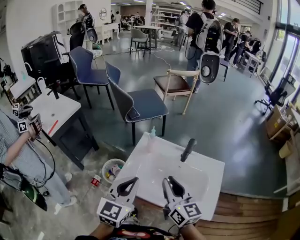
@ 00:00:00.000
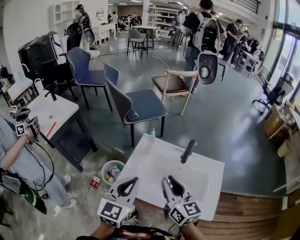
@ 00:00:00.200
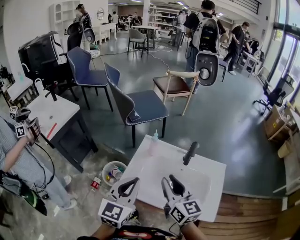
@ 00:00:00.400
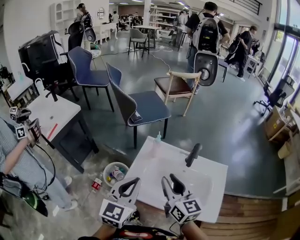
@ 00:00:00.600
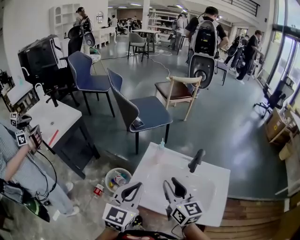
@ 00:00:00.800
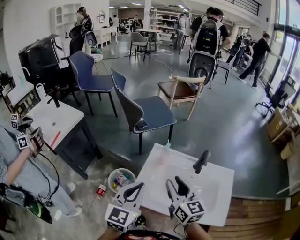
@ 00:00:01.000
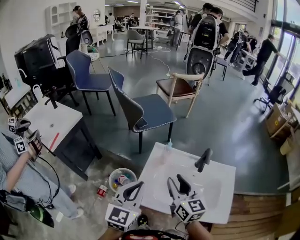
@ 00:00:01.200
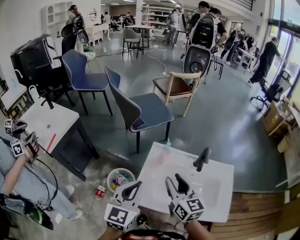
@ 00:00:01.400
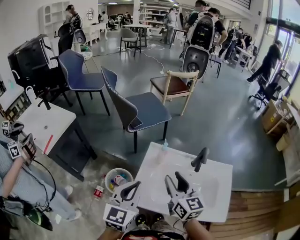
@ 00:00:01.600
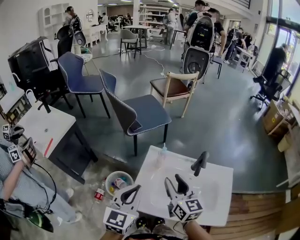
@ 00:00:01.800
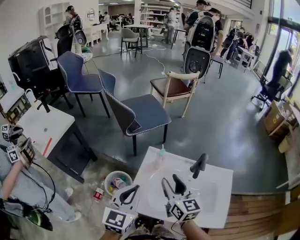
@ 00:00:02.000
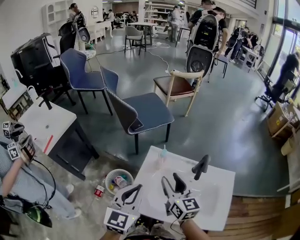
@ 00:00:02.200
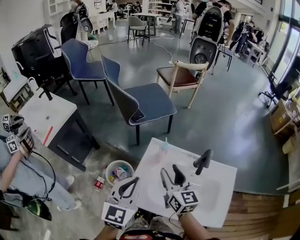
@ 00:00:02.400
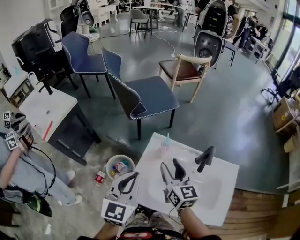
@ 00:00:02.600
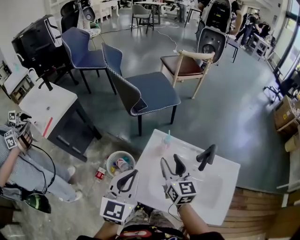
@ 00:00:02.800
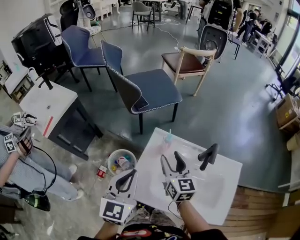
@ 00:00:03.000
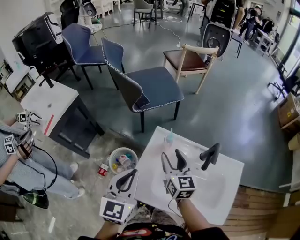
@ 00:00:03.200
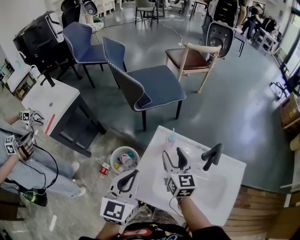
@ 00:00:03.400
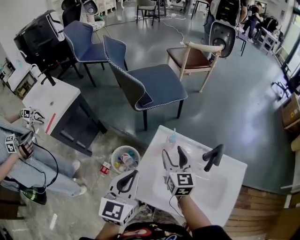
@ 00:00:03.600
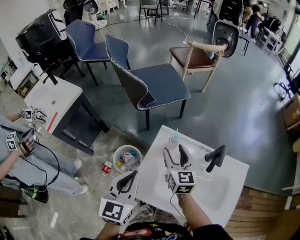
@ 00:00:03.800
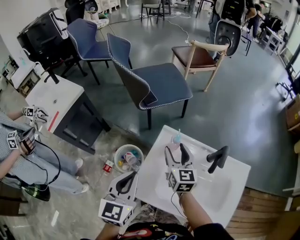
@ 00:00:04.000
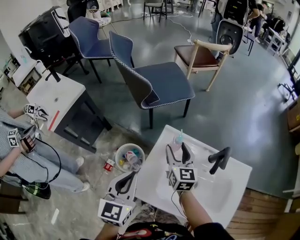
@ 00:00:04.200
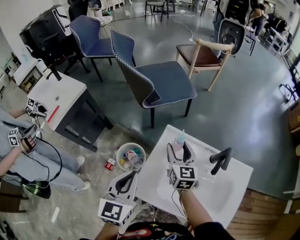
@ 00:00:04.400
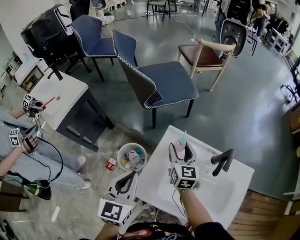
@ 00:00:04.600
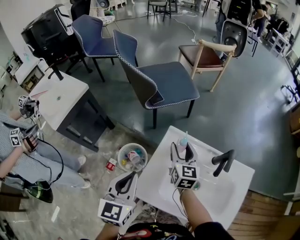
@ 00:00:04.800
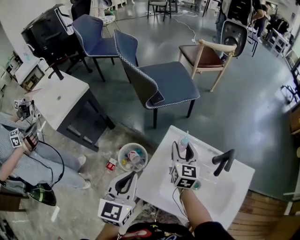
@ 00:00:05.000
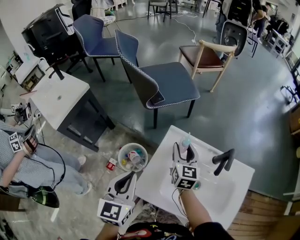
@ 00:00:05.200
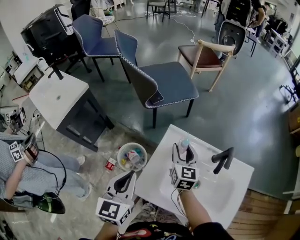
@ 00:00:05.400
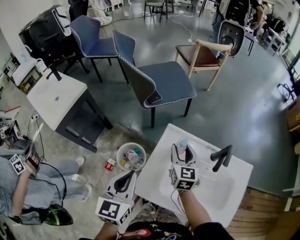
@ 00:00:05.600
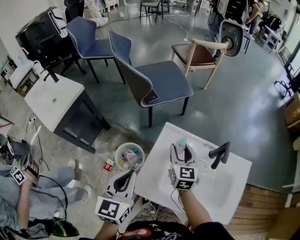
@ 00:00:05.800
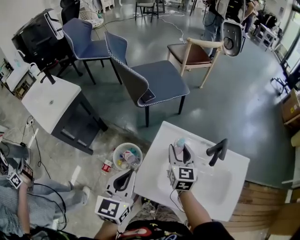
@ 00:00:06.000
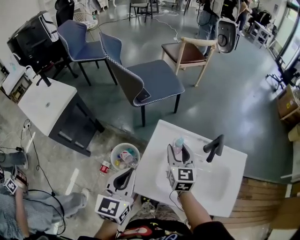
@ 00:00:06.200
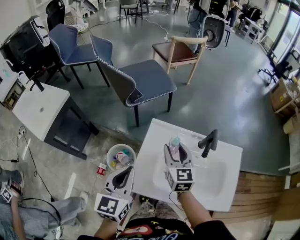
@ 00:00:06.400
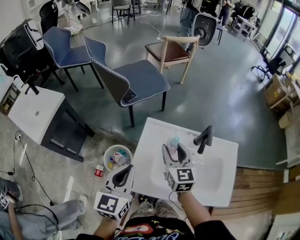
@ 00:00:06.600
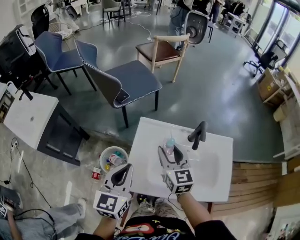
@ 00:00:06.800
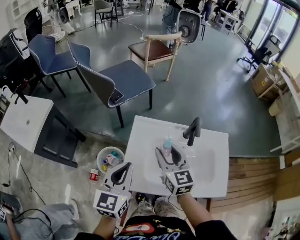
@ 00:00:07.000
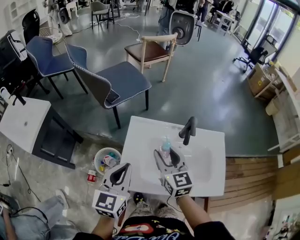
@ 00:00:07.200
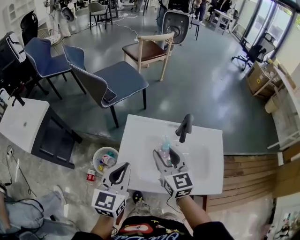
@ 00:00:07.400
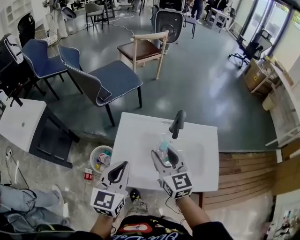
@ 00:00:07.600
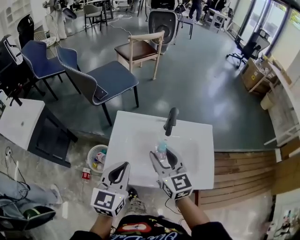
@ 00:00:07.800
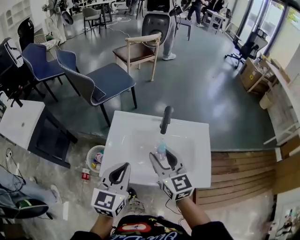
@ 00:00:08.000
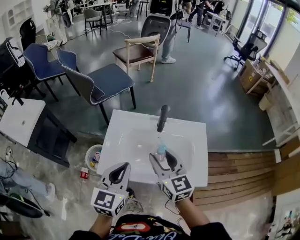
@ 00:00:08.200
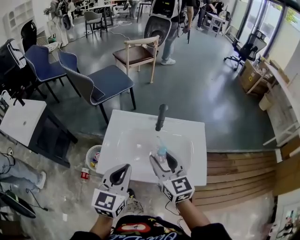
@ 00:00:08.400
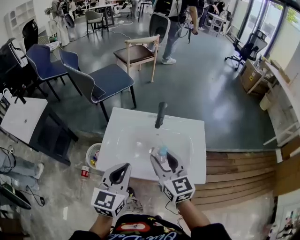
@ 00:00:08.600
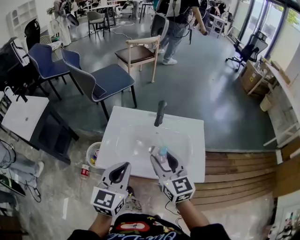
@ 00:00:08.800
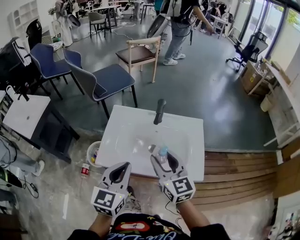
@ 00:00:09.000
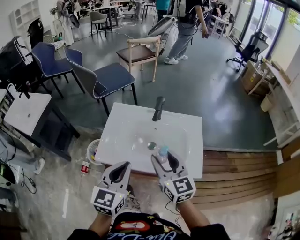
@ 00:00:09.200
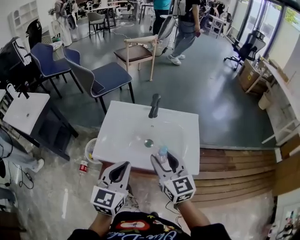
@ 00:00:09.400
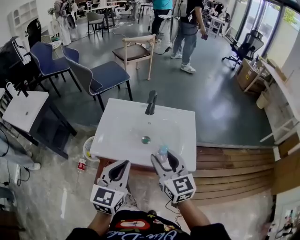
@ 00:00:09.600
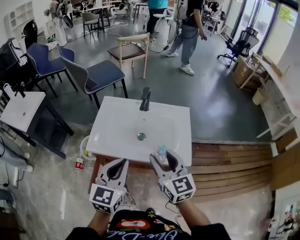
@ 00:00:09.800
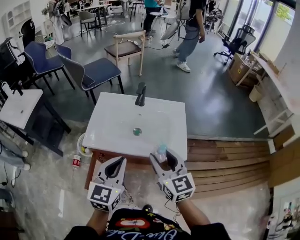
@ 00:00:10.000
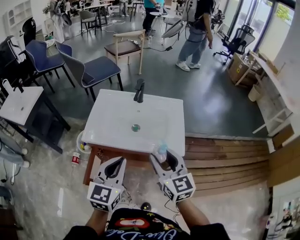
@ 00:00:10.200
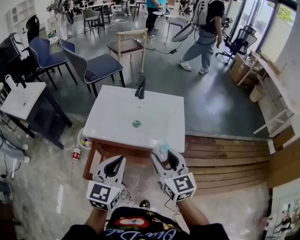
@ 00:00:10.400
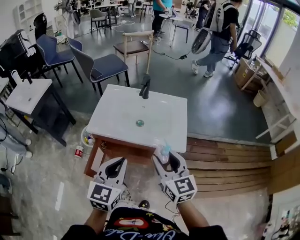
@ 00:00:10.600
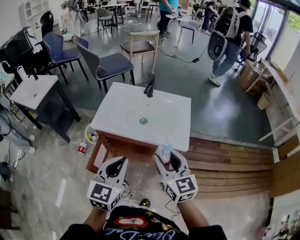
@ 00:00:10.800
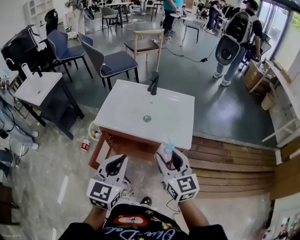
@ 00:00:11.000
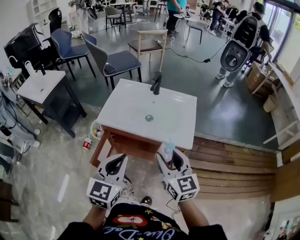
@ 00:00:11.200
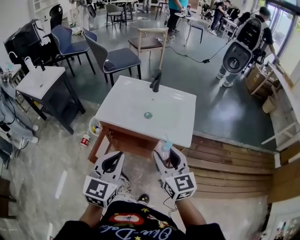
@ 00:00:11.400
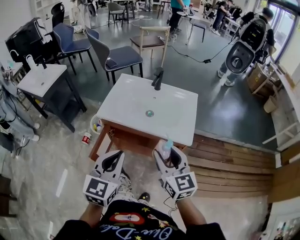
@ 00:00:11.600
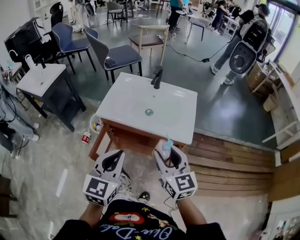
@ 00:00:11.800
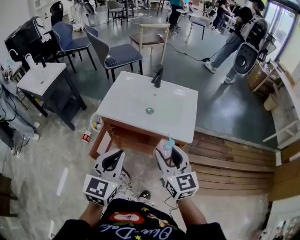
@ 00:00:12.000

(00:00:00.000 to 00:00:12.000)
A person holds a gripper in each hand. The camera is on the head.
00:00:00.000 - 00:00:01.600: The left gripper goes approximately 10 cm to the left and forward; the right gripper shifts approximately 10 cm forward and to the left, and opens up.
00:00:01.600 - 00:00:03.000: The right gripper goes about 10 cm forward and downward.
00:00:03.000 - 00:00:04.400: The right gripper shifts approximately 5 cm forward.
00:00:04.400 - 00:00:06.000: There are only small adjustments of the grippers.
00:00:06.000 - 00:00:07.600: The right gripper moves backward, upward and to the right, approximately 15 cm; the left gripper goes roughly 10 cm to the right.
00:00:07.600 - 00:00:09.000: Both grippers travel together backward and to the right, some 15 cm.
00:00:09.000 - 00:00:10.400: Both grippers move backward and to the right, roughly 15 cm.
00:00:10.400 - 00:00:12.000: The two grippers go about 5 cm backward.

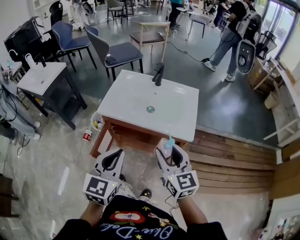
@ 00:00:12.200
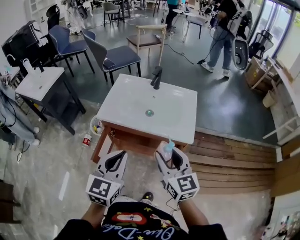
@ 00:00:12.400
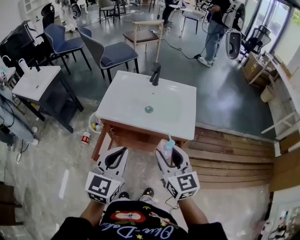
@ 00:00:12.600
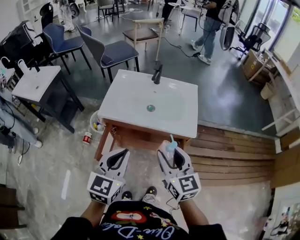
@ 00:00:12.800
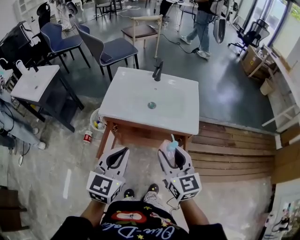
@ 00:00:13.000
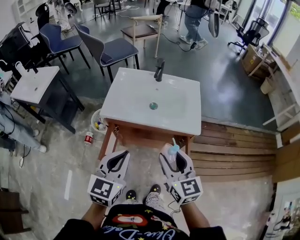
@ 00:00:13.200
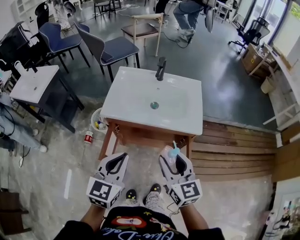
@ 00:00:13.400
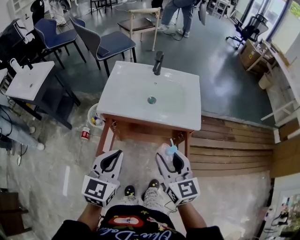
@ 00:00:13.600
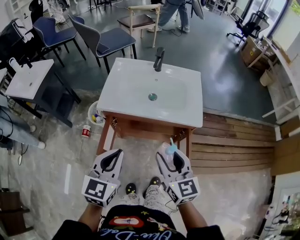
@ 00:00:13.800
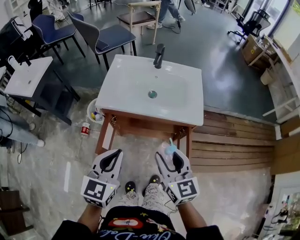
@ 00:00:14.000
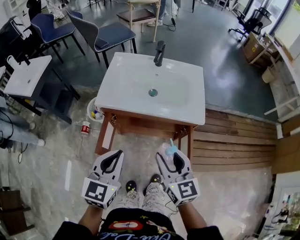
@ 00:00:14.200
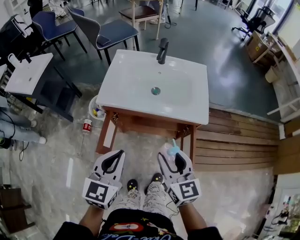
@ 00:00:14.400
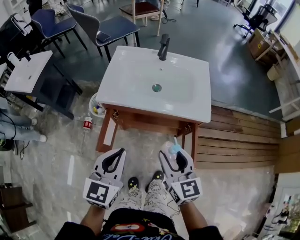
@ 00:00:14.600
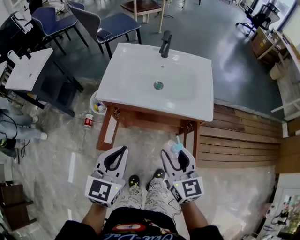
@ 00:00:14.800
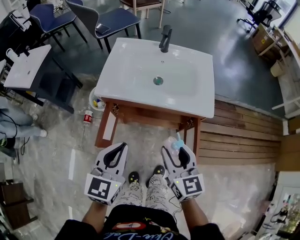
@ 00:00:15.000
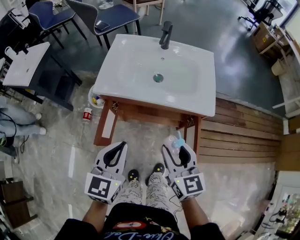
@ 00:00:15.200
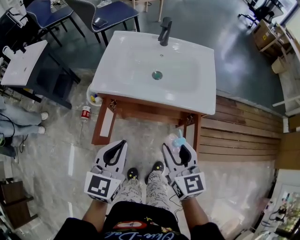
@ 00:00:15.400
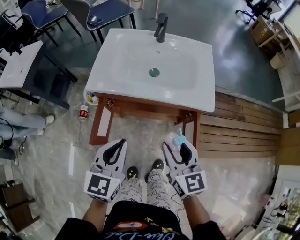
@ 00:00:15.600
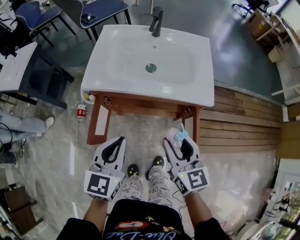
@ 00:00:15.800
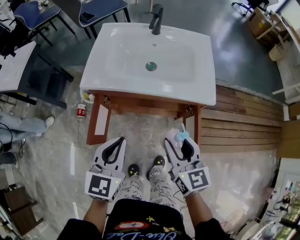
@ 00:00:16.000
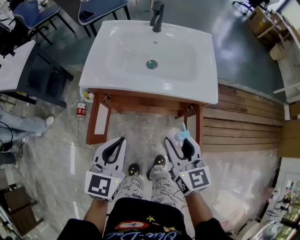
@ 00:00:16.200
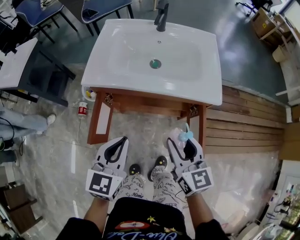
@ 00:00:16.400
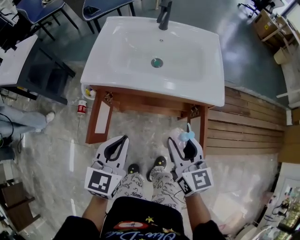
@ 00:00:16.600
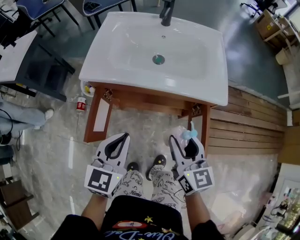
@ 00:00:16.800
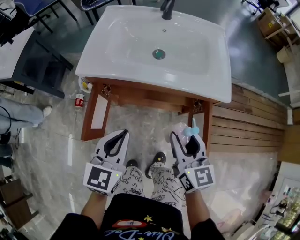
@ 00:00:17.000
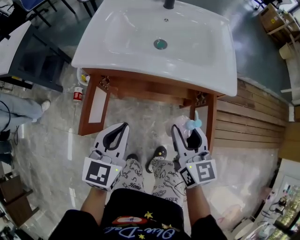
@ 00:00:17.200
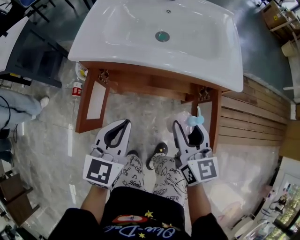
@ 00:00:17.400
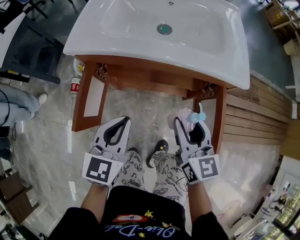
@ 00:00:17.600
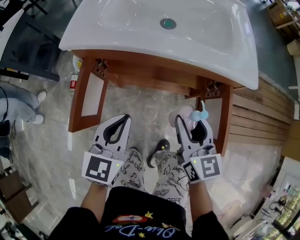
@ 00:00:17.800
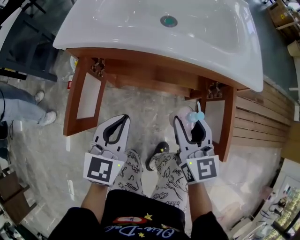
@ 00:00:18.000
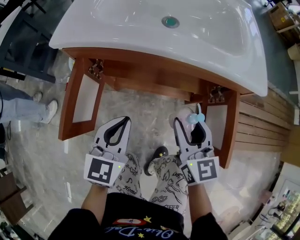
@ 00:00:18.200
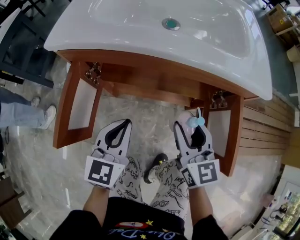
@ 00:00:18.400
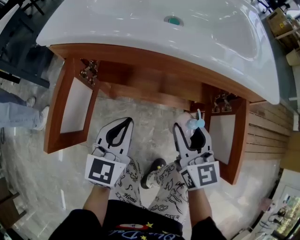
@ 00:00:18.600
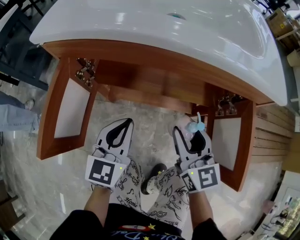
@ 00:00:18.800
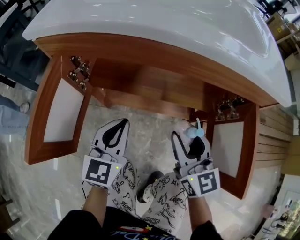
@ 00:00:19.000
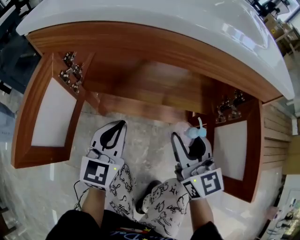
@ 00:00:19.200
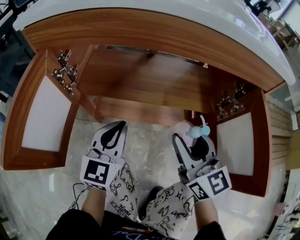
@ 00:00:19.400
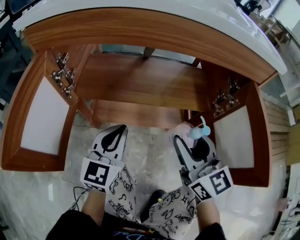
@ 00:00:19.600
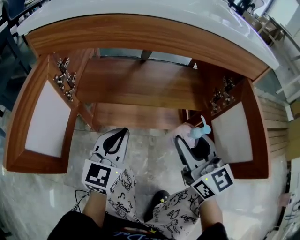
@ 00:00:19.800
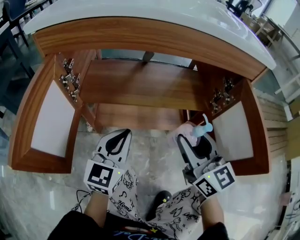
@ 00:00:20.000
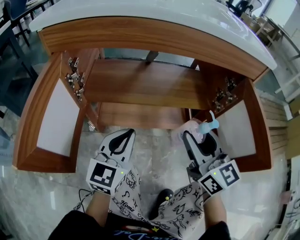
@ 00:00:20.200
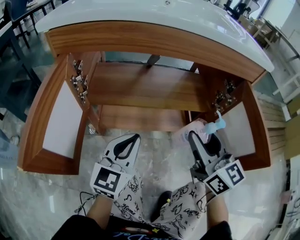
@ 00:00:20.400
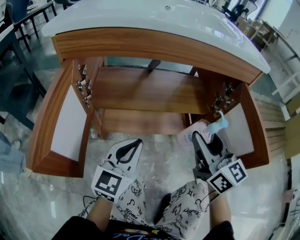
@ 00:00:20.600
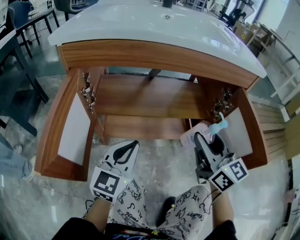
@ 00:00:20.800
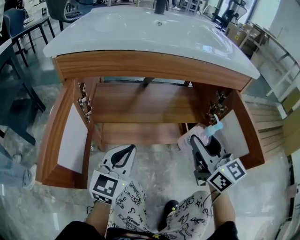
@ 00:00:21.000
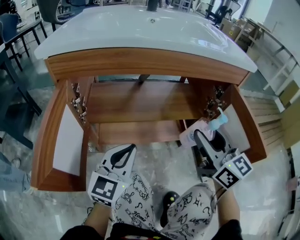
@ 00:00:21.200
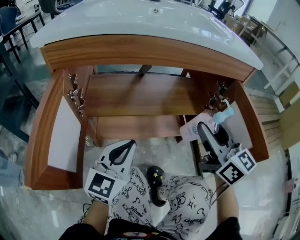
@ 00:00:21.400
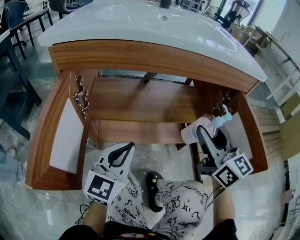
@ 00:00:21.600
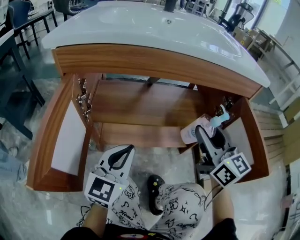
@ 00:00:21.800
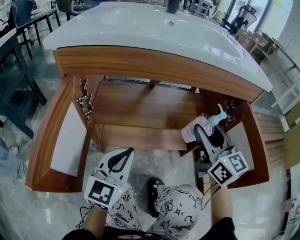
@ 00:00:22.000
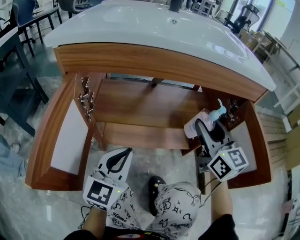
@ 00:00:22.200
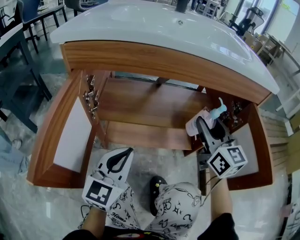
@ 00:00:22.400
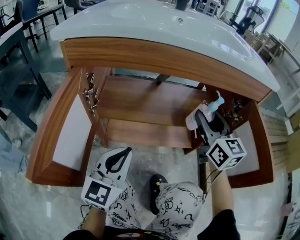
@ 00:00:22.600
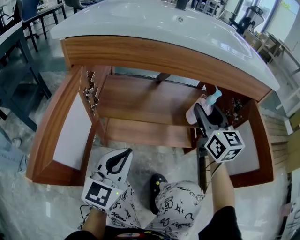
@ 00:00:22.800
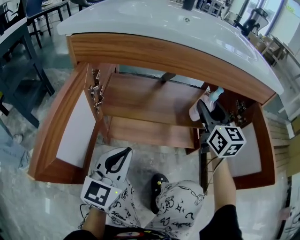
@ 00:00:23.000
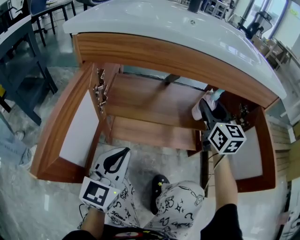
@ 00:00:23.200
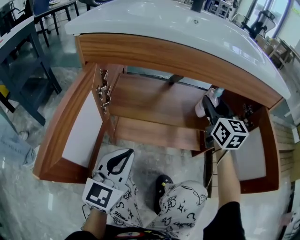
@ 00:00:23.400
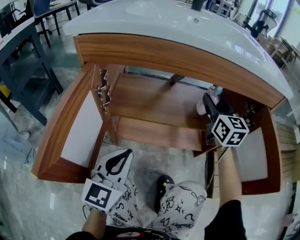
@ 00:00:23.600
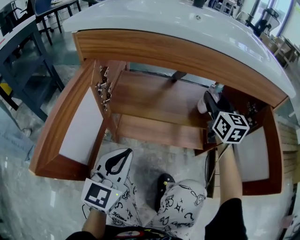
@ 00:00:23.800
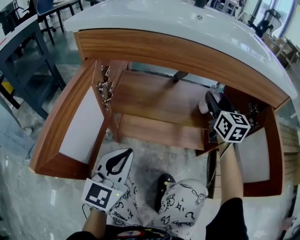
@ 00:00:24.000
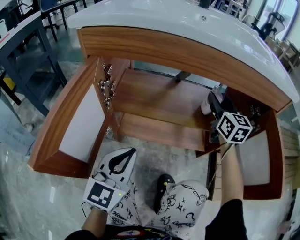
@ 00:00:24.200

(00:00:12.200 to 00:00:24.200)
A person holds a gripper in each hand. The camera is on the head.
00:00:12.200 - 00:00:13.800: Both grippers move to the left, roughly 5 cm.
00:00:13.800 - 00:00:15.200: Both grippers travel together downward, about 5 cm.
00:00:15.200 - 00:00:16.600: The grippers both shift downward by some 5 cm.
00:00:16.600 - 00:00:18.200: Both grippers travel together downward, roughly 15 cm.
00:00:18.200 - 00:00:19.800: The two grippers go approximately 15 cm downward.
00:00:19.800 - 00:00:21.200: The right gripper travels upward by some 5 cm.
00:00:21.200 - 00:00:22.600: The right gripper goes about 10 cm forward.
00:00:22.600 - 00:00:24.200: The right gripper moves forward, about 10 cm.
